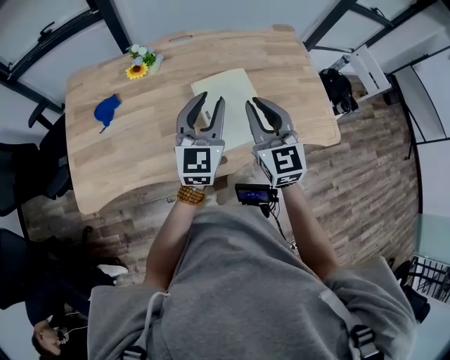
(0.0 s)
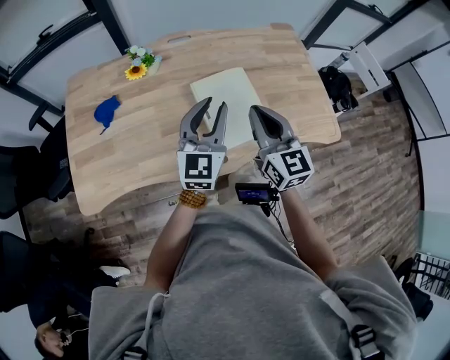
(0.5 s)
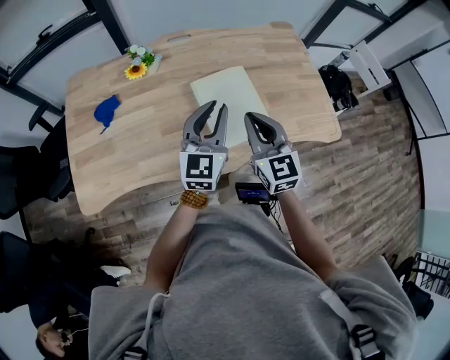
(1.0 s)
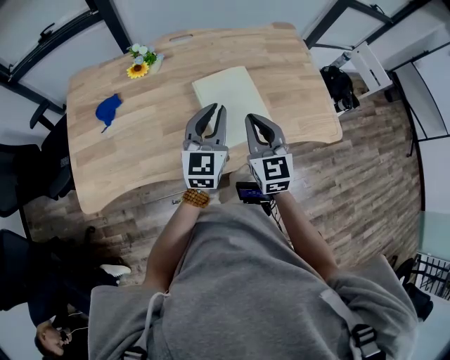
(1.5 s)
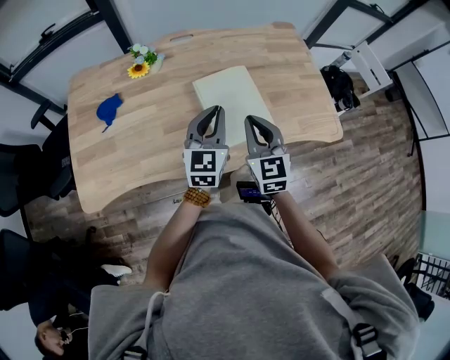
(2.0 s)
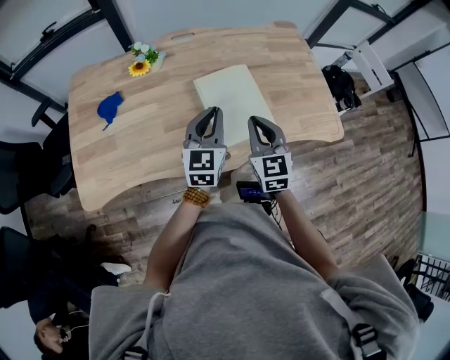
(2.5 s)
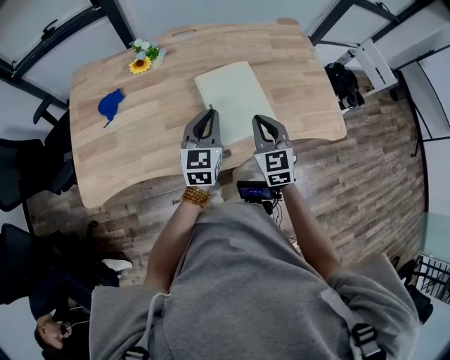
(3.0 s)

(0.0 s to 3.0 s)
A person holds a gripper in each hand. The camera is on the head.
0.0 s - 1.5 s: The right gripper is displaced downward by roughly 5 cm.
1.5 s - 3.0 s: Both grippers move downward, approximately 5 cm.

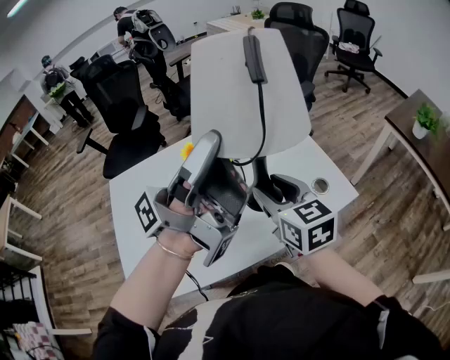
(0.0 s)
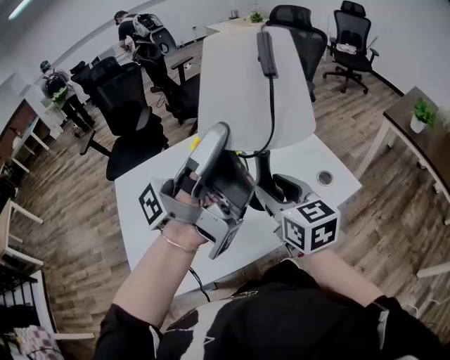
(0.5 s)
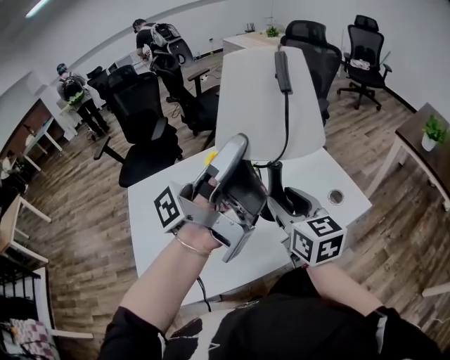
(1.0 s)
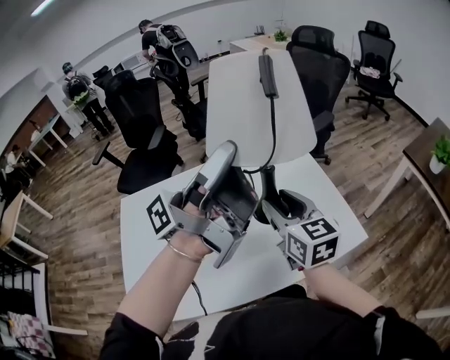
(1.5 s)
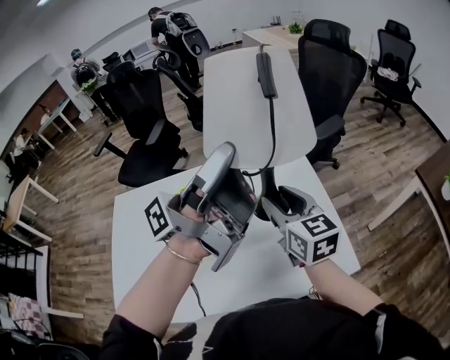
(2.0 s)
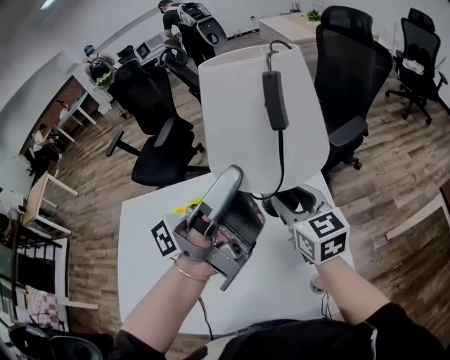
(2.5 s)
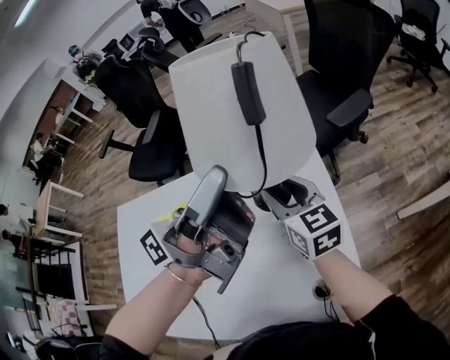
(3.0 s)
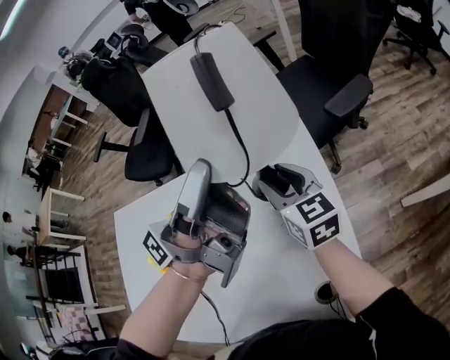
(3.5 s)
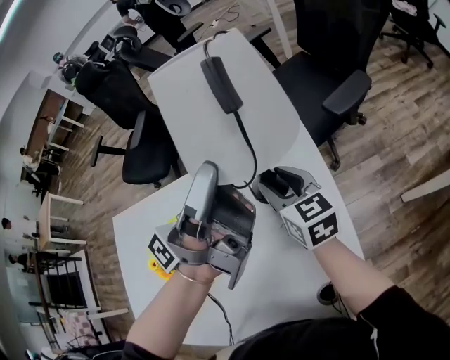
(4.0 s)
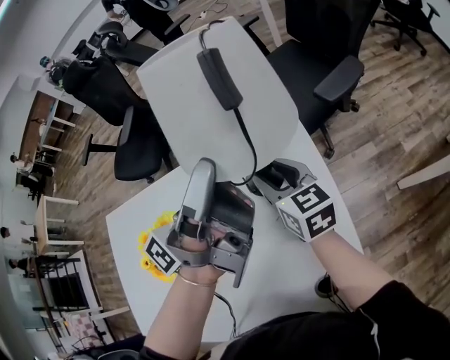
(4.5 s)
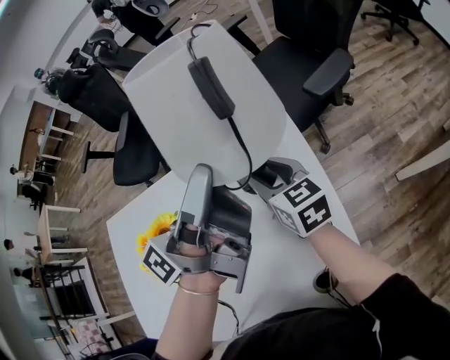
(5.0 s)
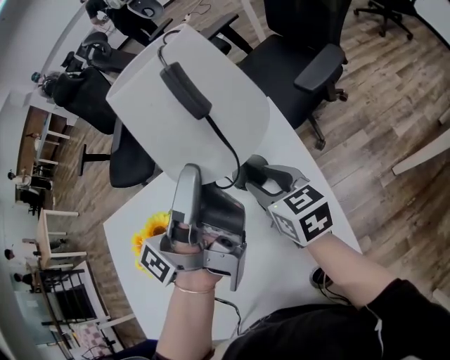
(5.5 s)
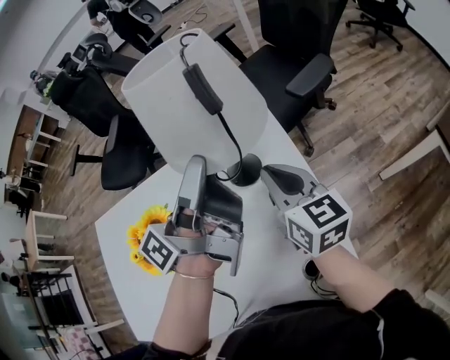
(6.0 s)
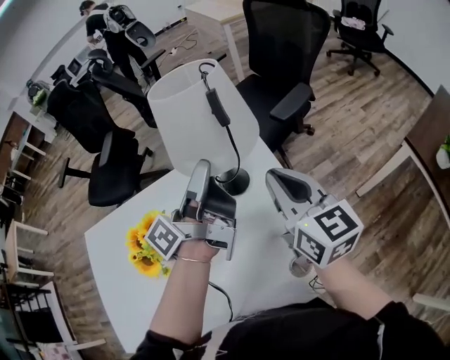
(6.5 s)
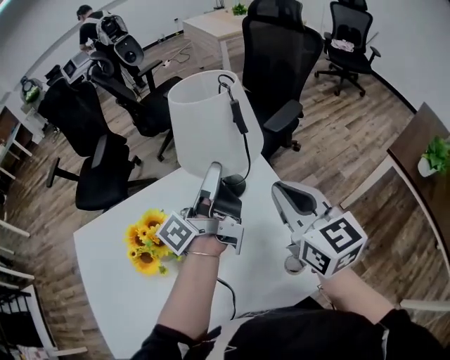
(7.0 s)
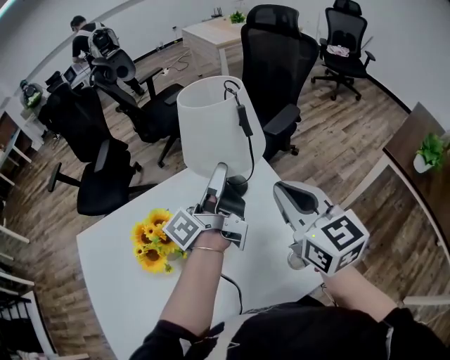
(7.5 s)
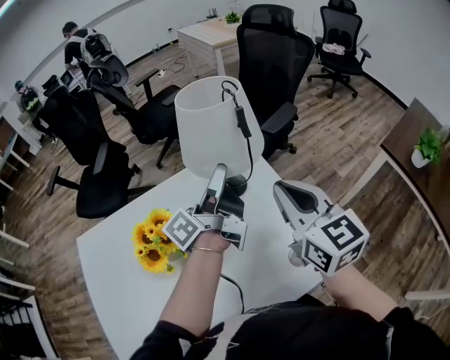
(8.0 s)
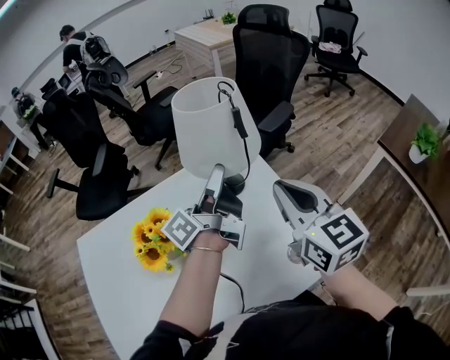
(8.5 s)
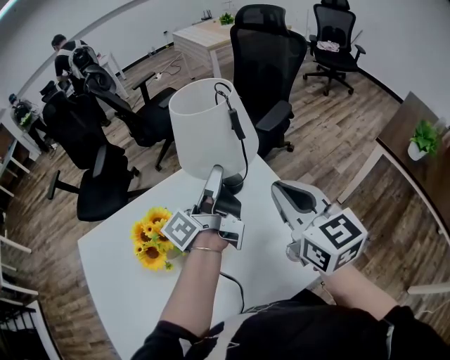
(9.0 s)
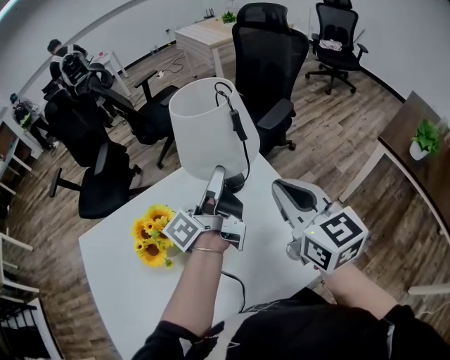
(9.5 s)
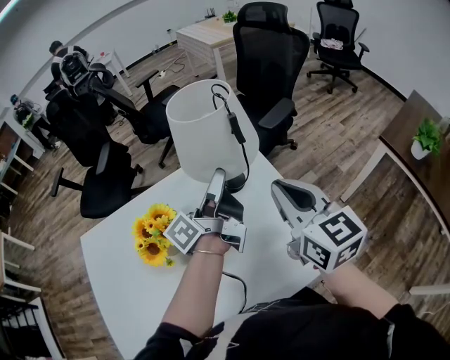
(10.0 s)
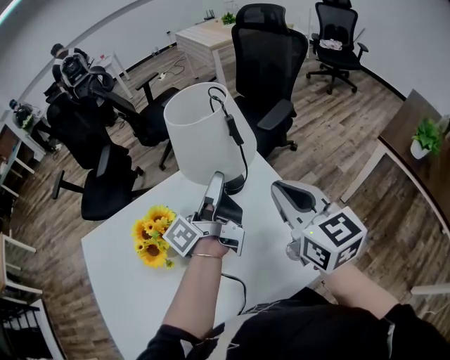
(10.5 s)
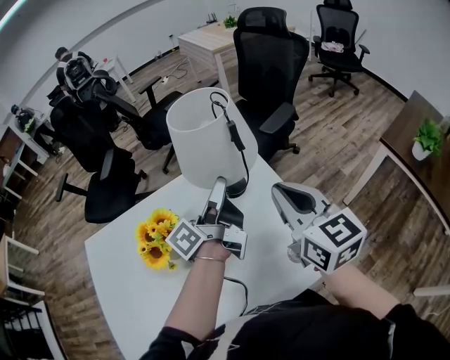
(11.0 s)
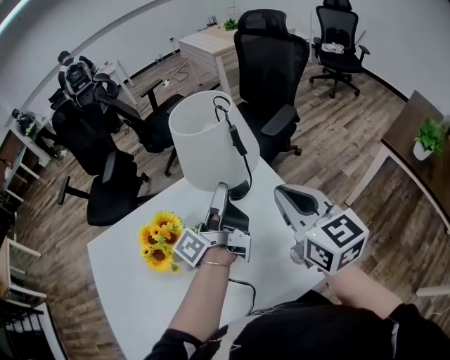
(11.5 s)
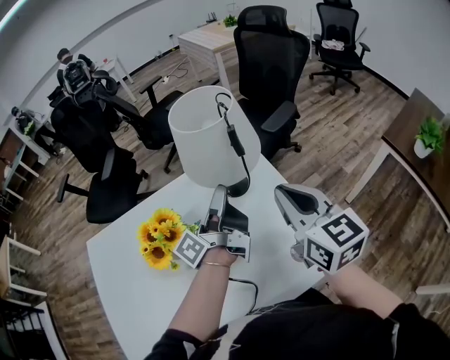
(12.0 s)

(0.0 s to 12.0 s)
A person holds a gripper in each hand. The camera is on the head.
0.0 s - 2.0 s: The right gripper moves about 15 cm.
2.0 s - 4.0 s: The right gripper moves roughly 20 cm.
4.0 s - 6.0 s: The right gripper moves approximately 10 cm, and closes up.
6.0 s - 8.0 s: The right gripper is displaced upward by approximately 15 cm.

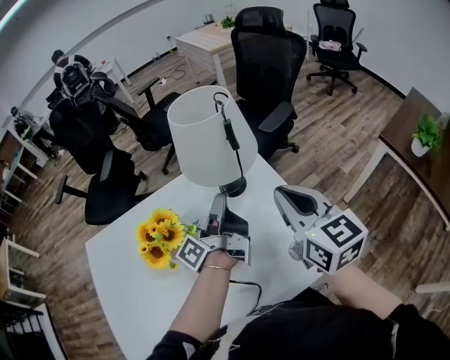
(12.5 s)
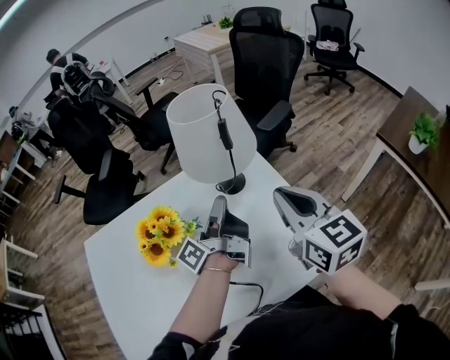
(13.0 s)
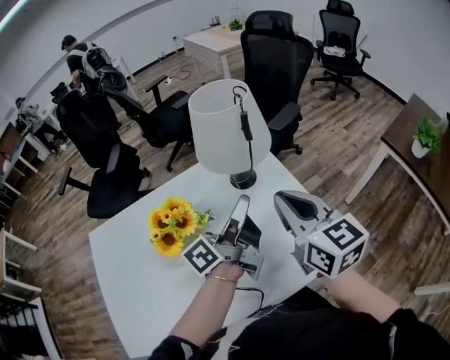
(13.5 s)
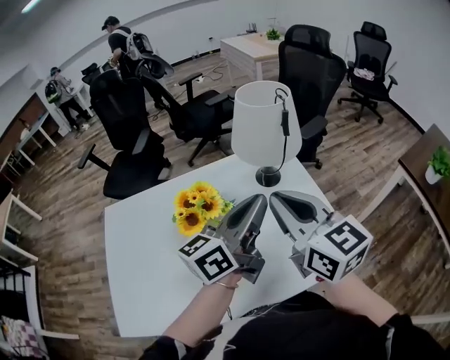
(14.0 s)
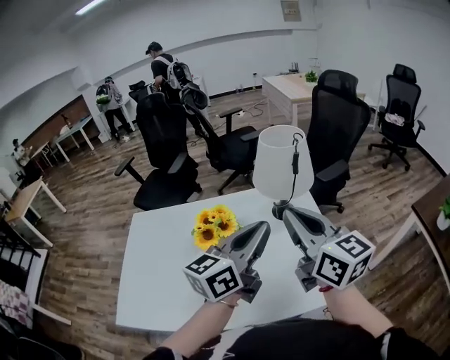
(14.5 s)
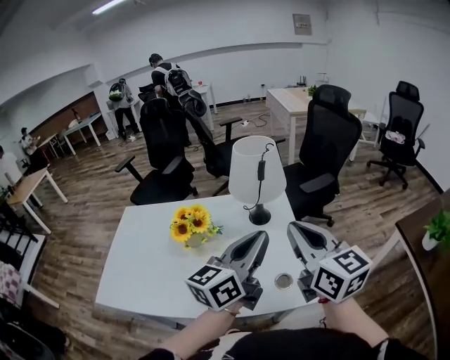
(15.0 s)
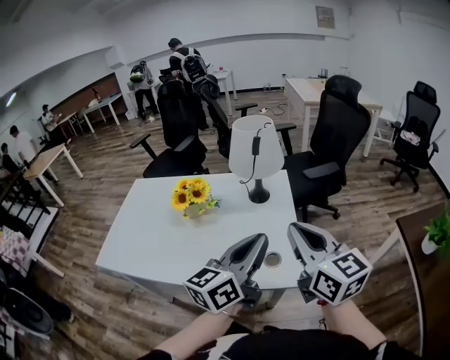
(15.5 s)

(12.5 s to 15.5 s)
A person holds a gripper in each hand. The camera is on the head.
12.5 s - 14.0 s: The right gripper changes place by some 15 cm.
14.0 s - 15.5 s: The right gripper moves some 20 cm.

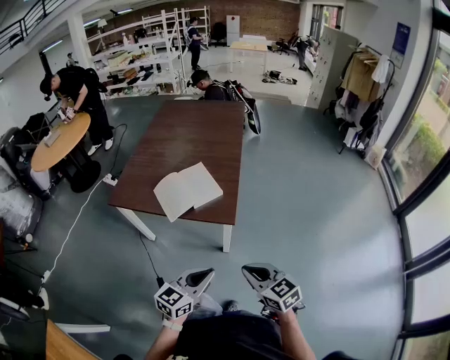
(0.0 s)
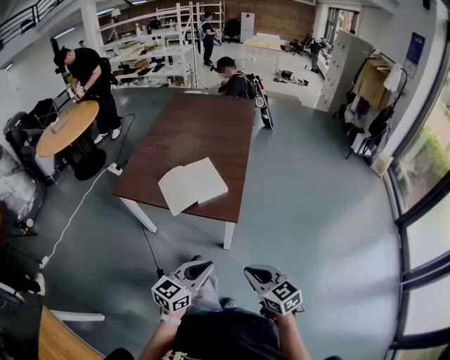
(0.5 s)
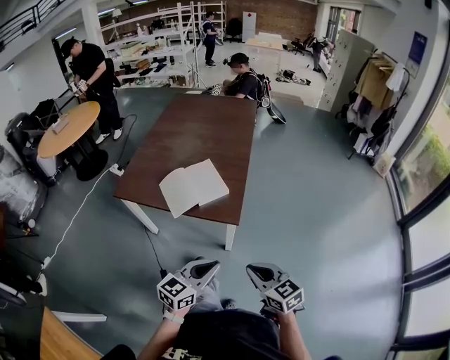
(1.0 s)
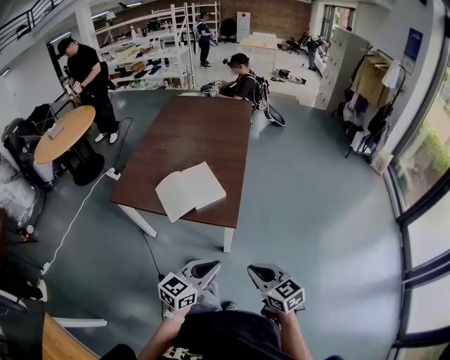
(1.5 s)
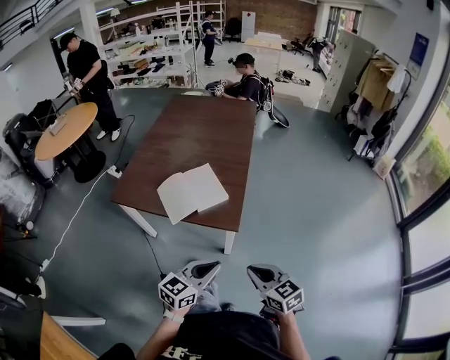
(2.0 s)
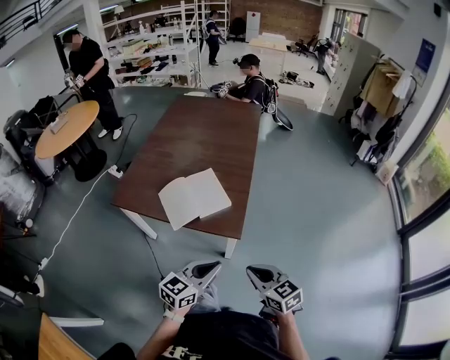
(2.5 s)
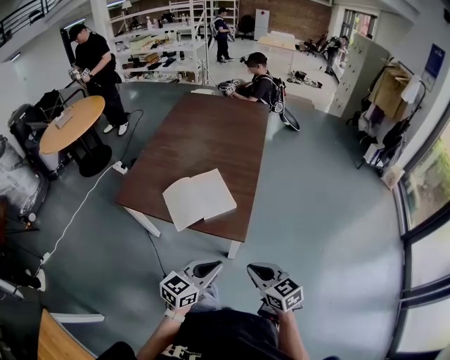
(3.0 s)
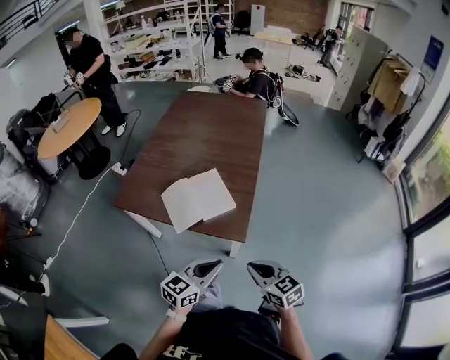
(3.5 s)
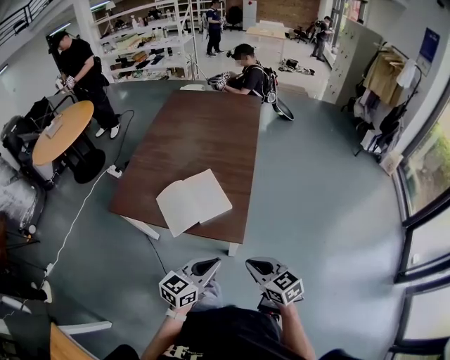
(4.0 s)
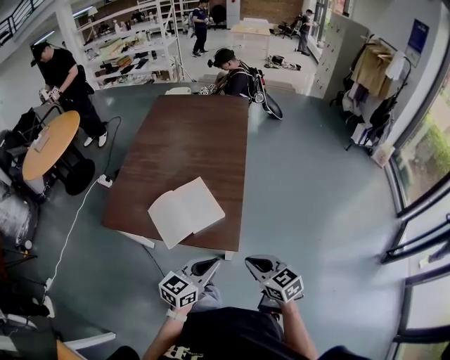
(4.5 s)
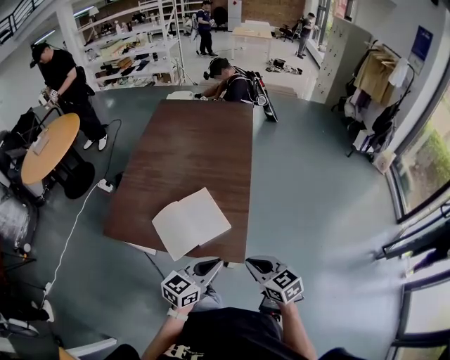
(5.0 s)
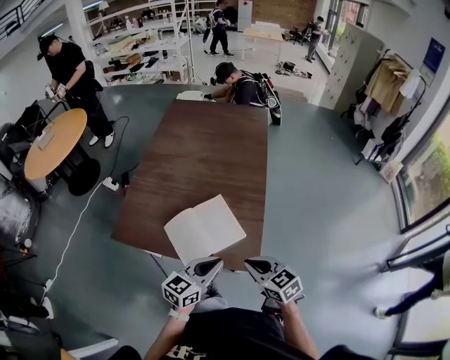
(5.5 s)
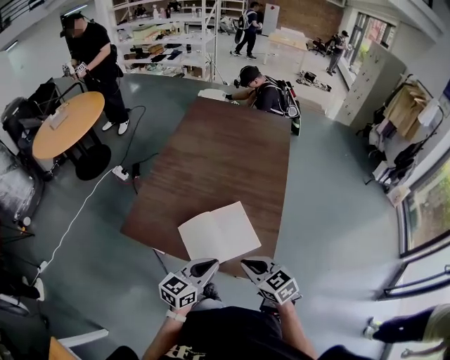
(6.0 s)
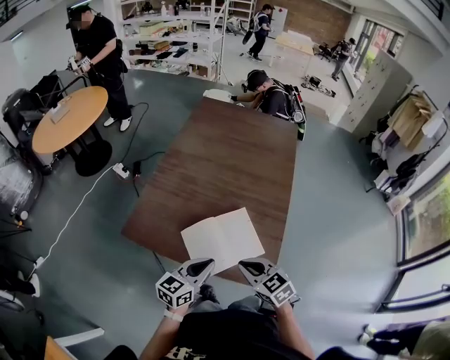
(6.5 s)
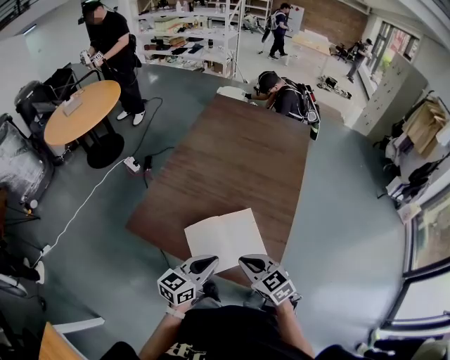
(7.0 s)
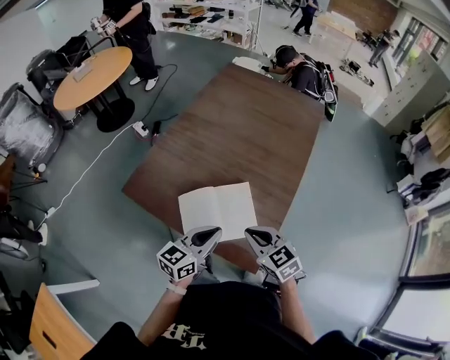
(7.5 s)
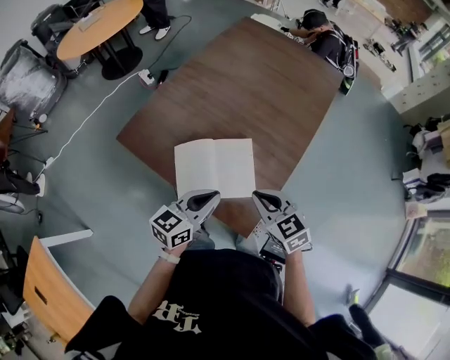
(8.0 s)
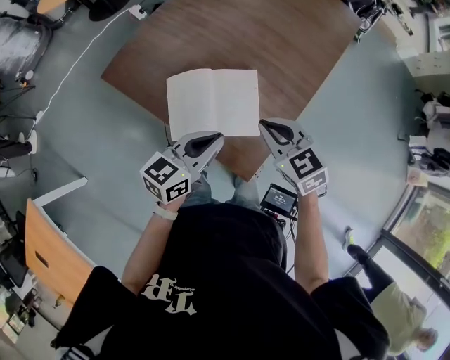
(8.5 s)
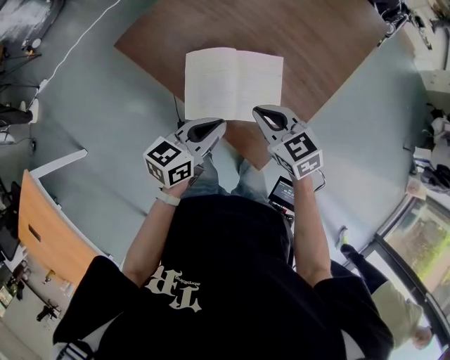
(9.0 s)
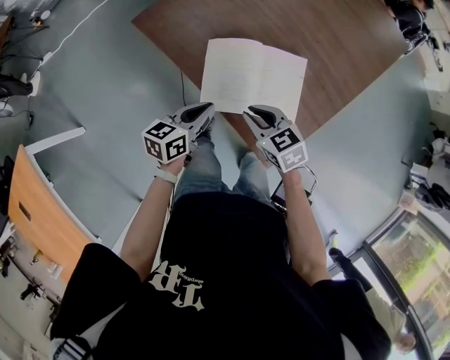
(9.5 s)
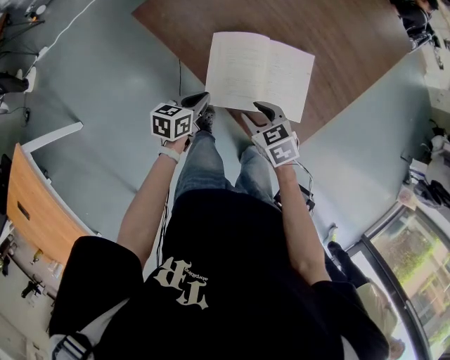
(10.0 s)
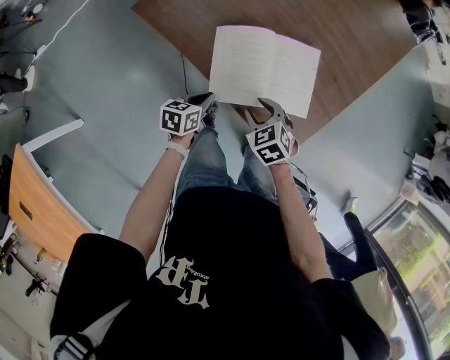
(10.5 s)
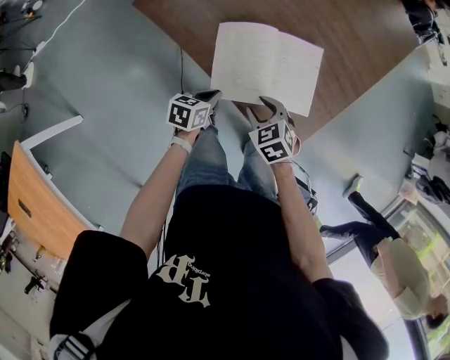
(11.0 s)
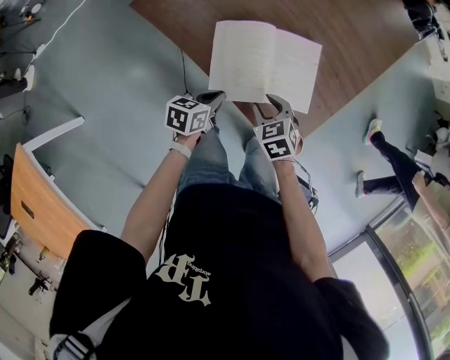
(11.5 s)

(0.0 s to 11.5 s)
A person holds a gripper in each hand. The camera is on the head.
0.0 s - 2.0 s: The two grippers go about 5 cm forward.
2.0 s - 4.0 s: Both grippers travel together forward, roughly 10 cm.
4.0 s - 6.0 s: Both grippers move forward and to the left, about 25 cm.
6.0 s - 7.5 s: Both grippers move forward and to the right, approximately 10 cm.
7.5 s - 9.5 s: Both grippers move downward and to the left, approximately 20 cm. The right gripper changes its angle by approximately 20 degrees. The left gripper changes its angle by some 30 degrees.
9.5 s - 11.5 s: Both grippers travel together downward, some 10 cm. The right gripper swivels approximately 20 degrees, and opens.
